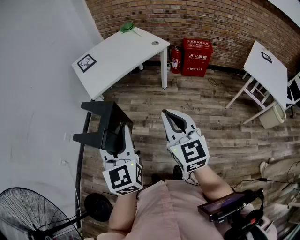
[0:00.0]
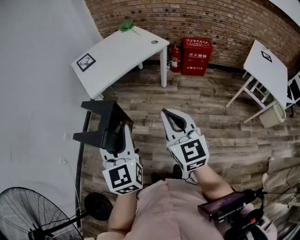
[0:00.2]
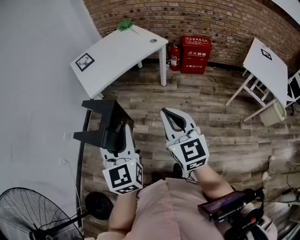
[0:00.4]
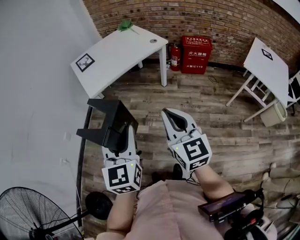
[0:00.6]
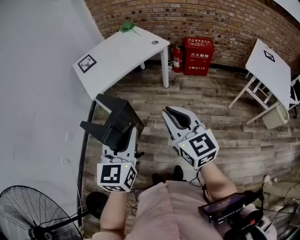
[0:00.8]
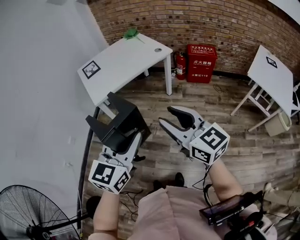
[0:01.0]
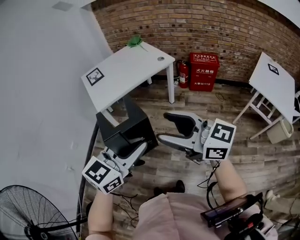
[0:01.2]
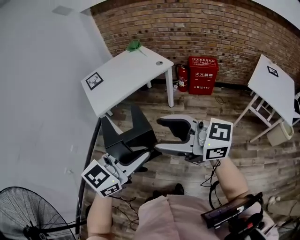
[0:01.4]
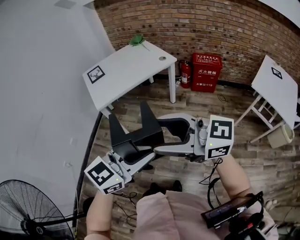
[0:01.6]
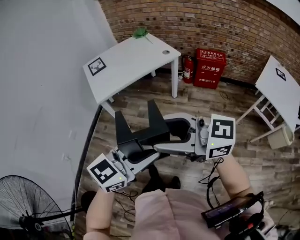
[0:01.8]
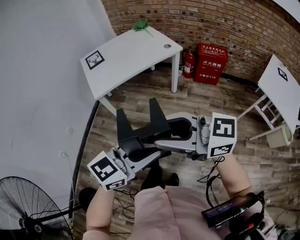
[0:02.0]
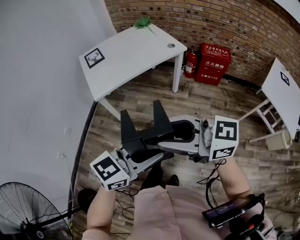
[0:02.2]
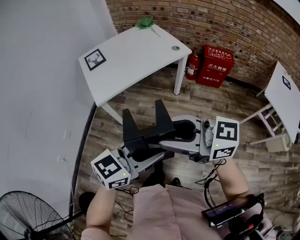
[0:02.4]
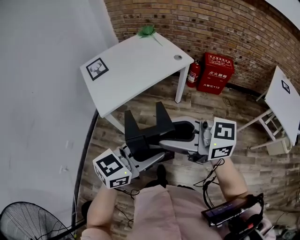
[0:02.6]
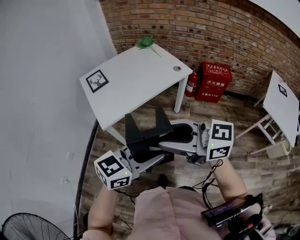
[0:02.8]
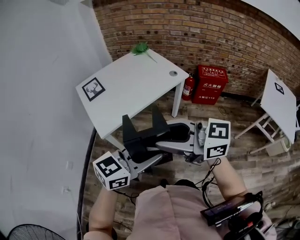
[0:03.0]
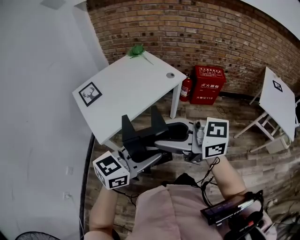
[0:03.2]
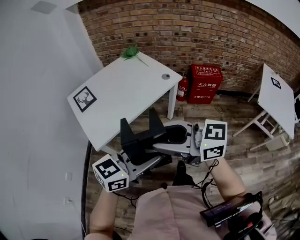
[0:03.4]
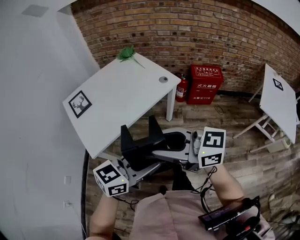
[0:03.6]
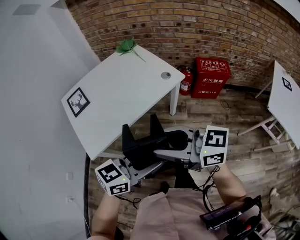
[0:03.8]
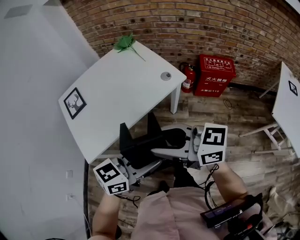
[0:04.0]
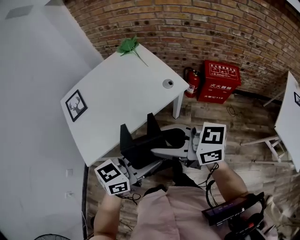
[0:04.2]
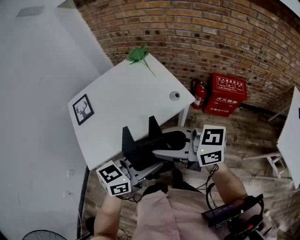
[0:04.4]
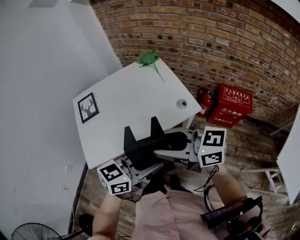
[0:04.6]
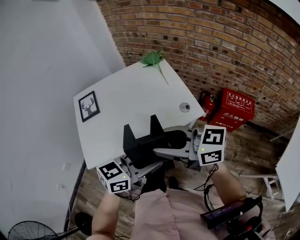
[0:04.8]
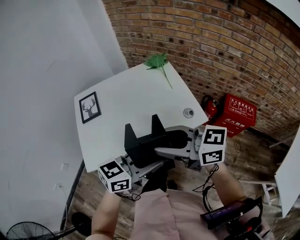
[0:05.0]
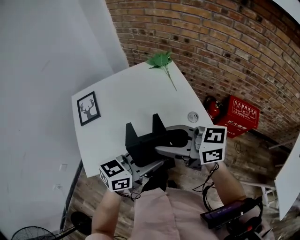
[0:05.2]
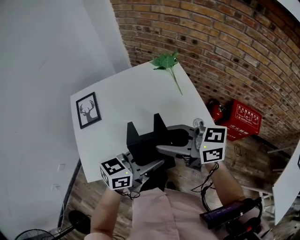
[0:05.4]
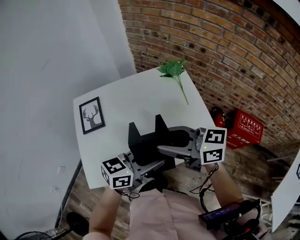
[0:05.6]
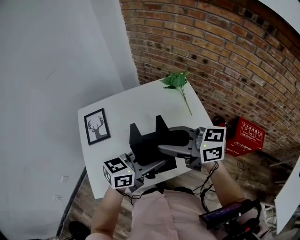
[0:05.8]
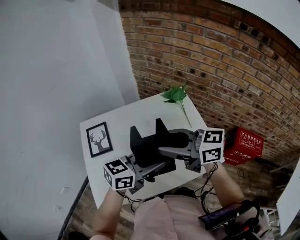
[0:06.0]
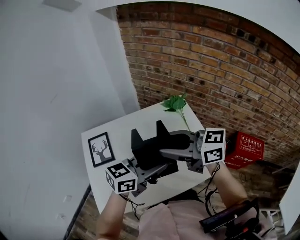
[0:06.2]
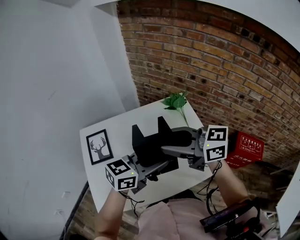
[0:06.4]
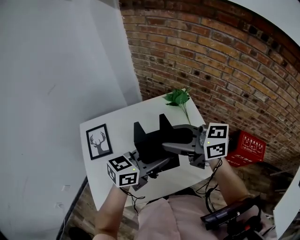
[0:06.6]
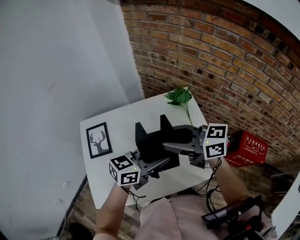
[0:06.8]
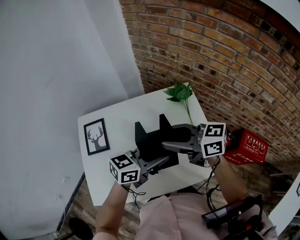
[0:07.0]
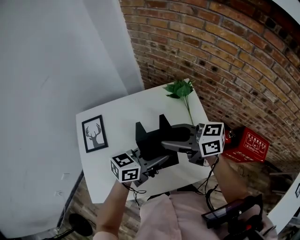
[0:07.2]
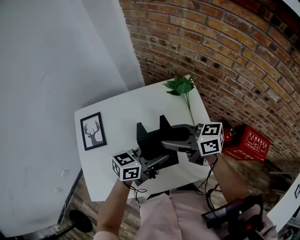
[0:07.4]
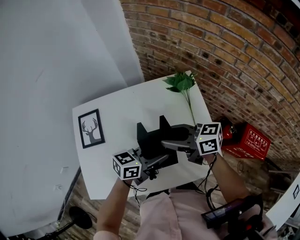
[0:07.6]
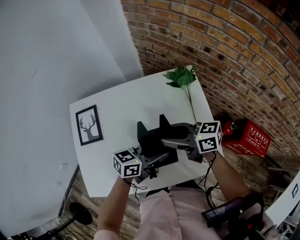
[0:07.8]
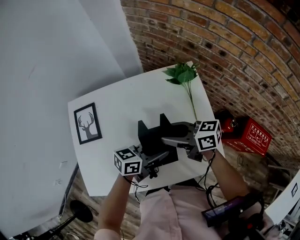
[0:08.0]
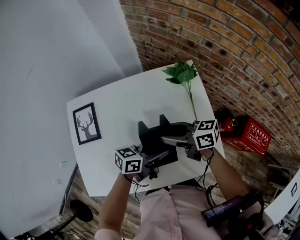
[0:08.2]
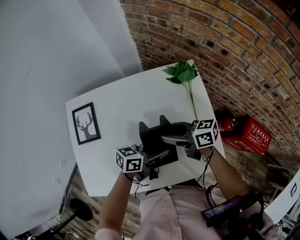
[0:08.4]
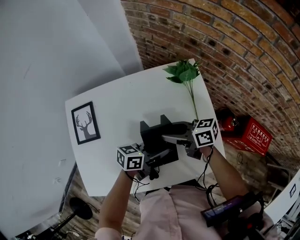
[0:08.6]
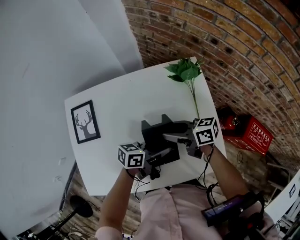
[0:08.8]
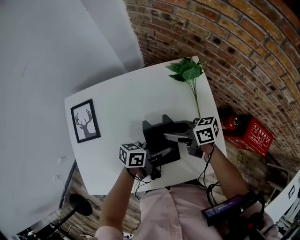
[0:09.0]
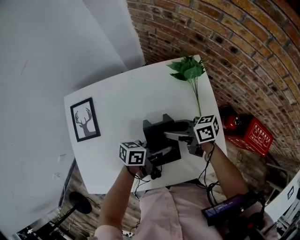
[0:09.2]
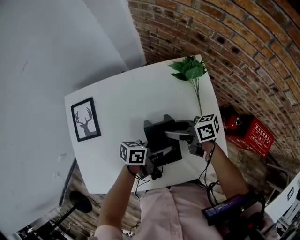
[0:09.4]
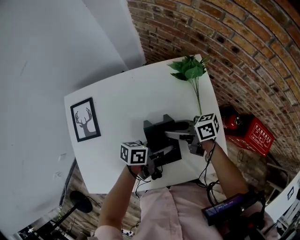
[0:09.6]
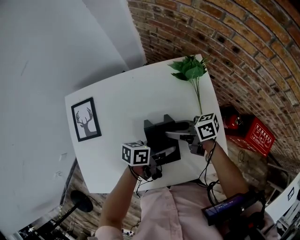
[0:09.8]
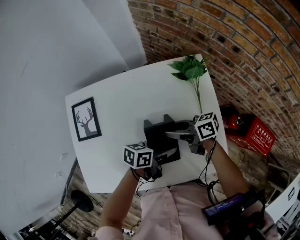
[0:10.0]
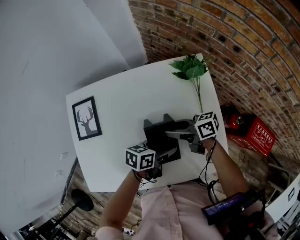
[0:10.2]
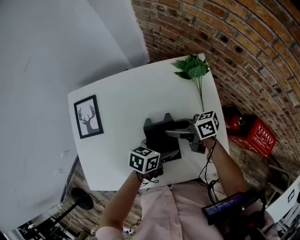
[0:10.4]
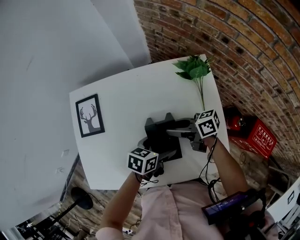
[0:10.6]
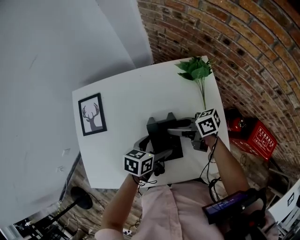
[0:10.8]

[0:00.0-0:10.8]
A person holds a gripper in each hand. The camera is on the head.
0:00.0 to 0:01.6: The left gripper shifts by about 15 cm, and rotates about 60 degrees. The right gripper goes roughly 10 cm upward, rotates some 60 degrees, and opens its fingers.
0:01.6 to 0:03.0: The right gripper shifts by about 25 cm, and closes, while the left gripper changes place by some 25 cm.
0:03.0 to 0:04.6: The right gripper ends up approximately 35 cm from where it was, while the left gripper moves some 30 cm.
0:04.6 to 0:06.2: The right gripper shifts by approximately 30 cm. The left gripper ends up approximately 30 cm from where it was.
0:06.2 to 0:07.8: The grippers both shift downward by approximately 15 cm. The right gripper changes its angle by roughly 20 degrees. Meanwhile the left gripper swivels roughly 20 degrees.
0:07.8 to 0:09.2: Both grippers move downward, roughly 10 cm. The left gripper turns by approximately 20 degrees.
0:09.2 to 0:10.8: The left gripper moves roughly 5 cm, turns by about 30 degrees, and opens.

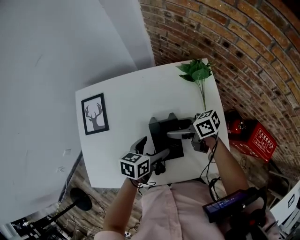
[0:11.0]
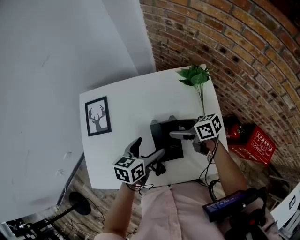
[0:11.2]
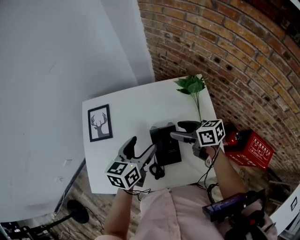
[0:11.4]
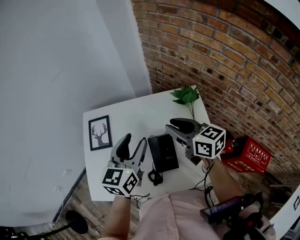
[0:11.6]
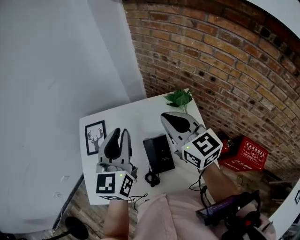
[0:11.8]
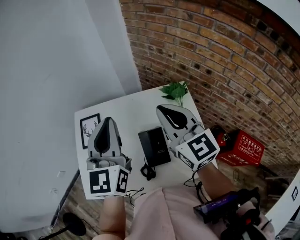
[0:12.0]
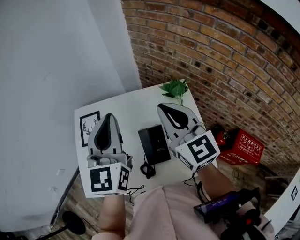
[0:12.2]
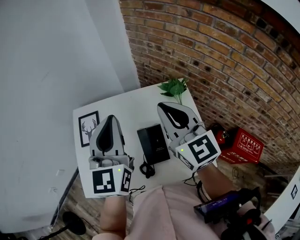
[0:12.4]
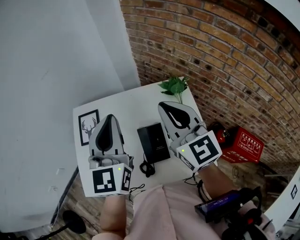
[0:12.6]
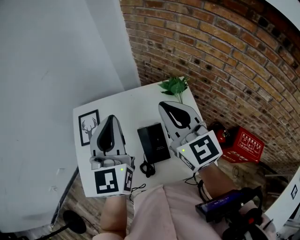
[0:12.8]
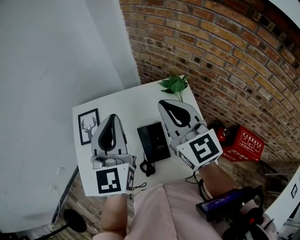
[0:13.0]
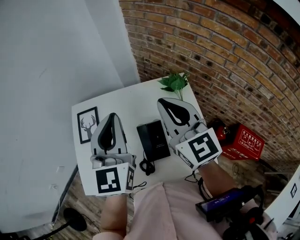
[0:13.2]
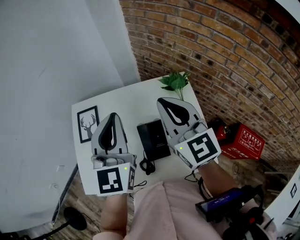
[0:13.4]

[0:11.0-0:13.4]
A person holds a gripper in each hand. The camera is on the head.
0:11.0 to 0:12.2: The two grippers go about 35 cm upward. The right gripper rotates approximately 80 degrees, and closes its fingers. Meanwhile the left gripper tips its fingers upward by some 40 degrees, and closes its fingers.
0:12.2 to 0:13.4: The grippers stay close to where they were, moving slightly.

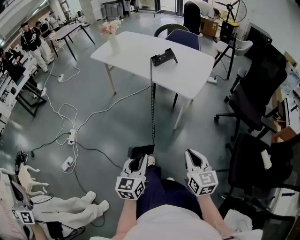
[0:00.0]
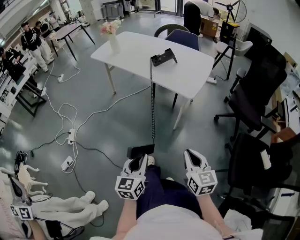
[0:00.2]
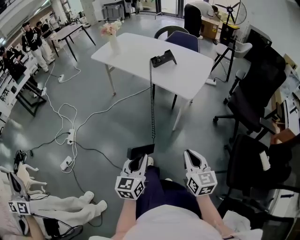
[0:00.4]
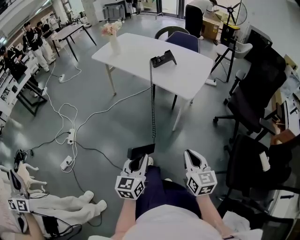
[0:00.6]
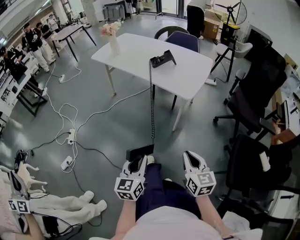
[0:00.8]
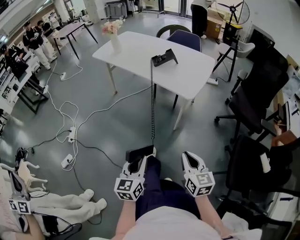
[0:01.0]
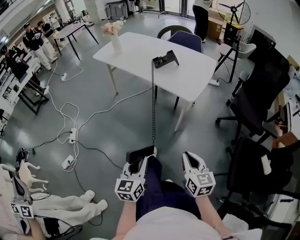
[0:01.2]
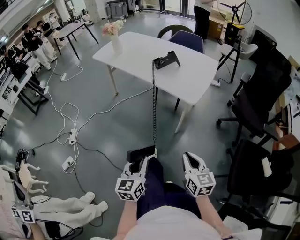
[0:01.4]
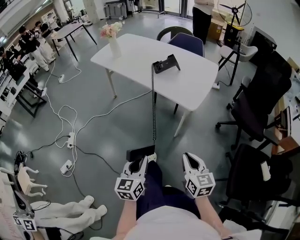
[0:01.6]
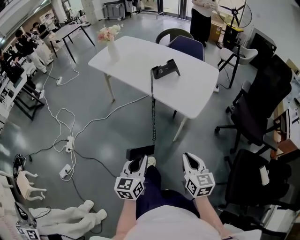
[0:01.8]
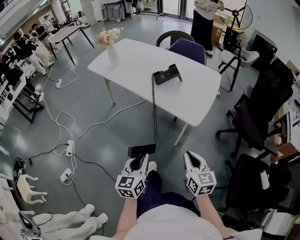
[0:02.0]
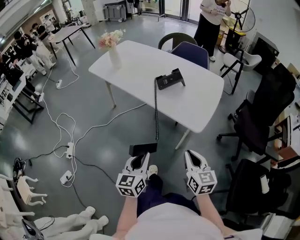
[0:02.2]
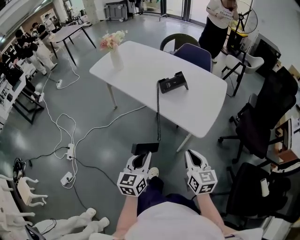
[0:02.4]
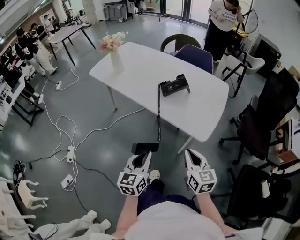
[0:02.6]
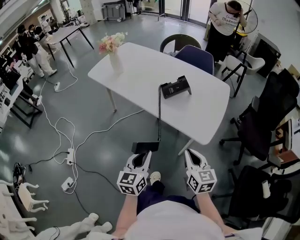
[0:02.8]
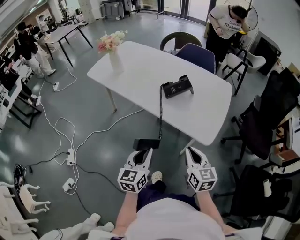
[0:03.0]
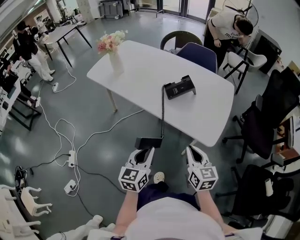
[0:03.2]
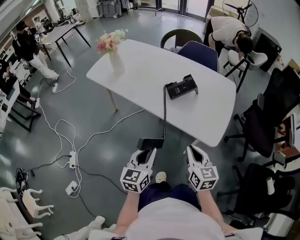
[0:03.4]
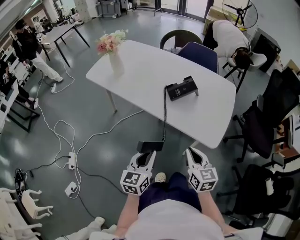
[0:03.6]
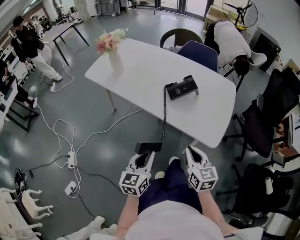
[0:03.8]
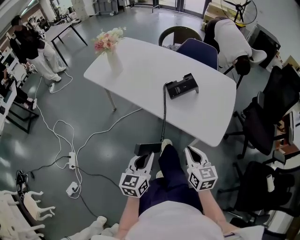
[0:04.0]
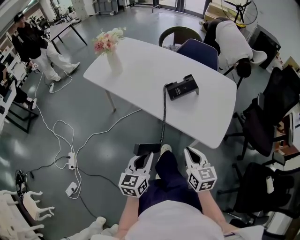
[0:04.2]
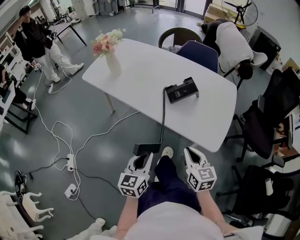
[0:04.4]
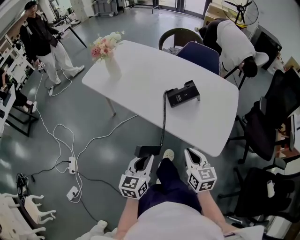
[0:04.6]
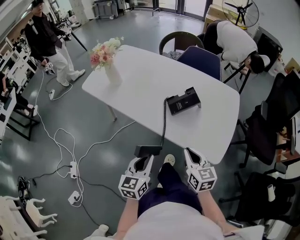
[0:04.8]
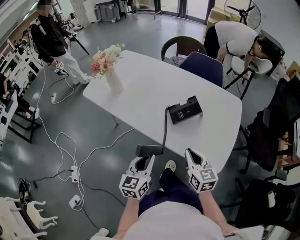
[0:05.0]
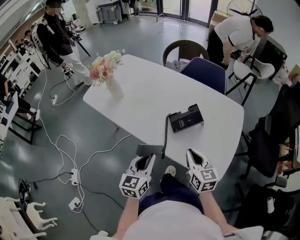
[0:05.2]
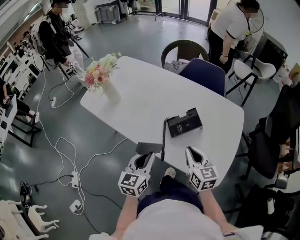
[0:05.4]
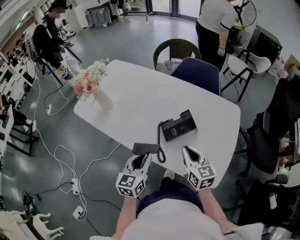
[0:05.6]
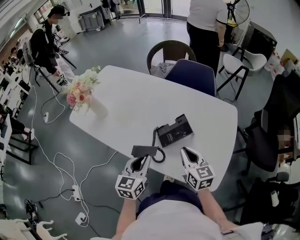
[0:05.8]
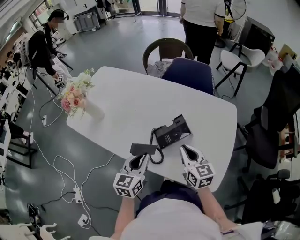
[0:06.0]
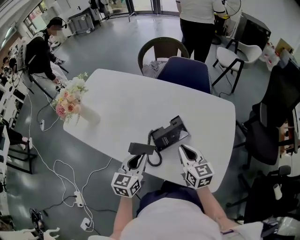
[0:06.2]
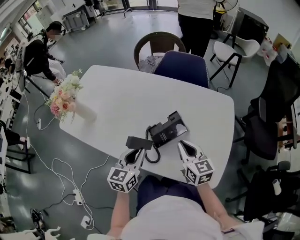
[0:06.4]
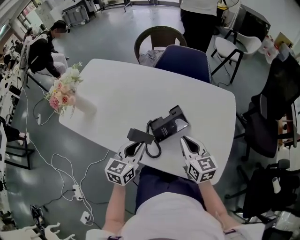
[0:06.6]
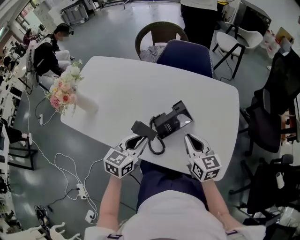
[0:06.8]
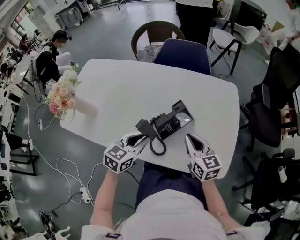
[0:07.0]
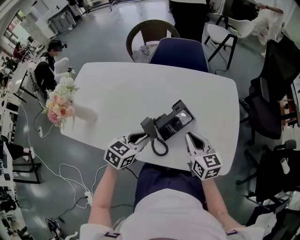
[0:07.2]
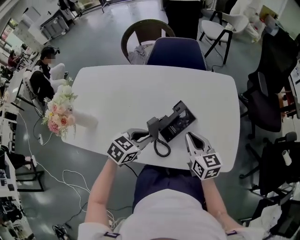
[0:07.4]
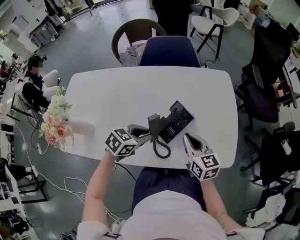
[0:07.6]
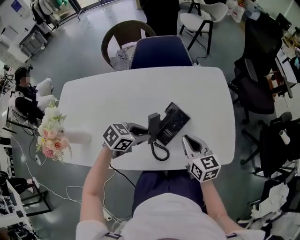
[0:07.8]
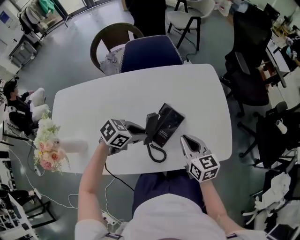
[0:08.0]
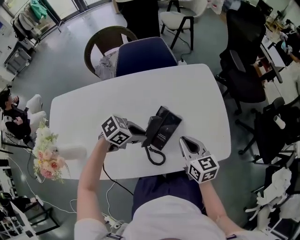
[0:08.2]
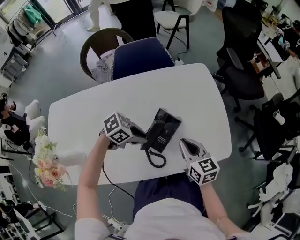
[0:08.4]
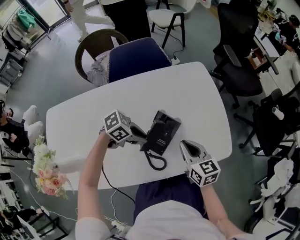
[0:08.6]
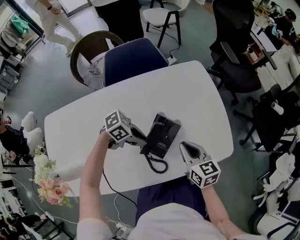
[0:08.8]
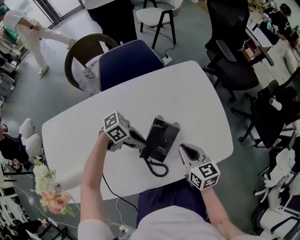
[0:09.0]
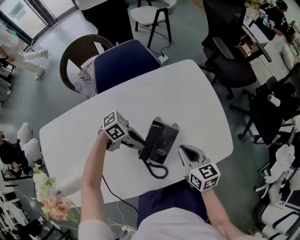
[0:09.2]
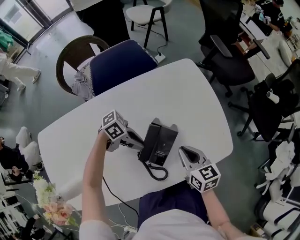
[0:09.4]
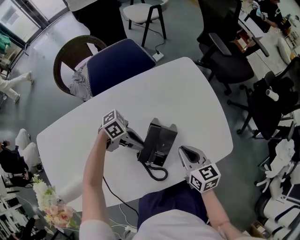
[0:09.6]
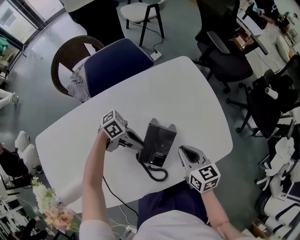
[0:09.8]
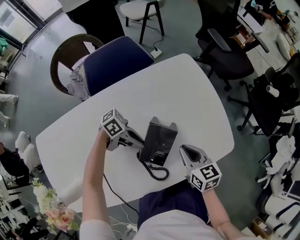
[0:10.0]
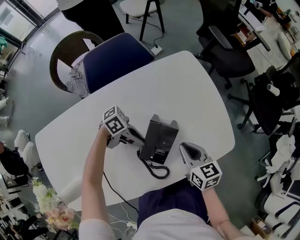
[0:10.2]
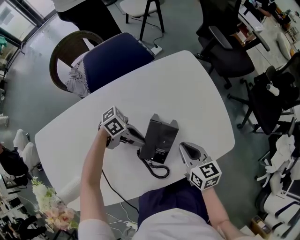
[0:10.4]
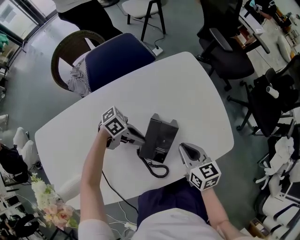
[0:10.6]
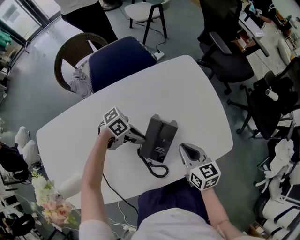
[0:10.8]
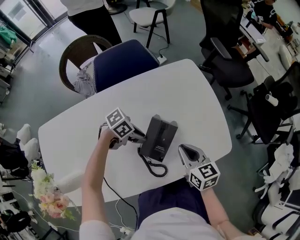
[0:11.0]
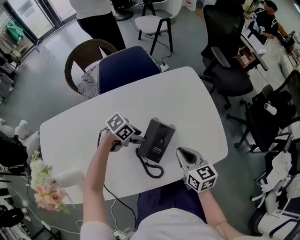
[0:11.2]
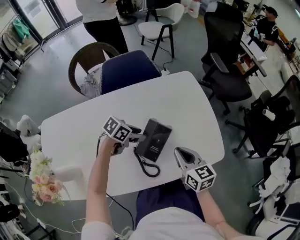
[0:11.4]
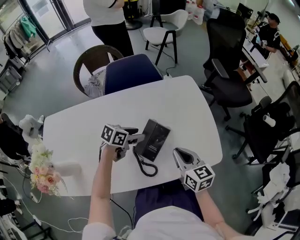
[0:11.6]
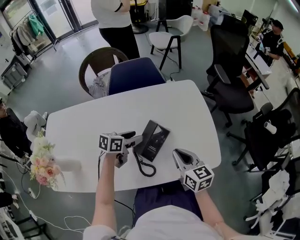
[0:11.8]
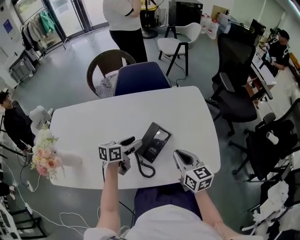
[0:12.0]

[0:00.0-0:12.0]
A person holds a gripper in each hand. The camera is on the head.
0:00.0 to 0:01.6: The two grippers go roughly 5 cm forward.
0:01.6 to 0:03.0: The two grippers go about 25 cm forward.
0:03.0 to 0:04.4: The right gripper shifts about 5 cm forward. Meanwhile the left gripper ends up some 5 cm from where it was.
0:04.4 to 0:06.0: Both grippers travel together forward, some 25 cm.
0:06.0 to 0:07.6: The right gripper changes its angle by some 20 degrees. Meanwhile the left gripper shifts by about 10 cm, and swivels approximately 60 degrees.
0:07.6 to 0:09.0: The left gripper changes place by approximately 10 cm, and swivels about 60 degrees.
0:09.0 to 0:10.4: The grippers make only small movements.
0:10.4 to 0:12.0: Both grippers move upward, about 5 cm. The right gripper swivels some 20 degrees. The left gripper swivels approximately 80 degrees, and opens up.
